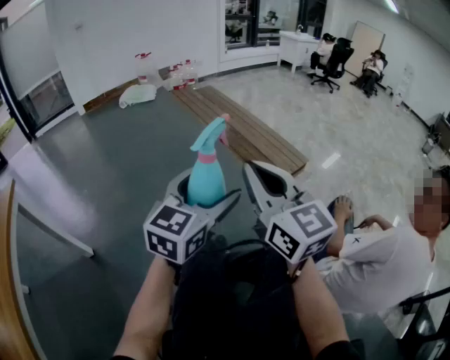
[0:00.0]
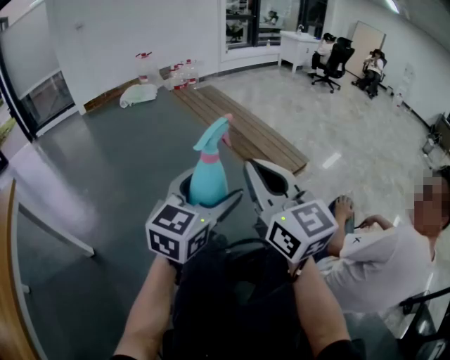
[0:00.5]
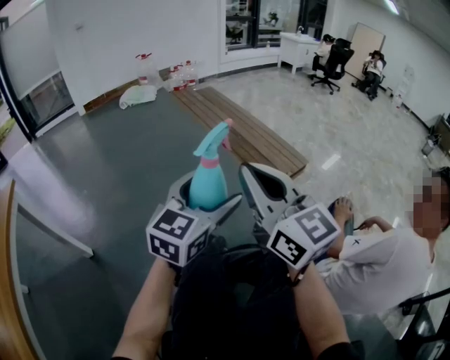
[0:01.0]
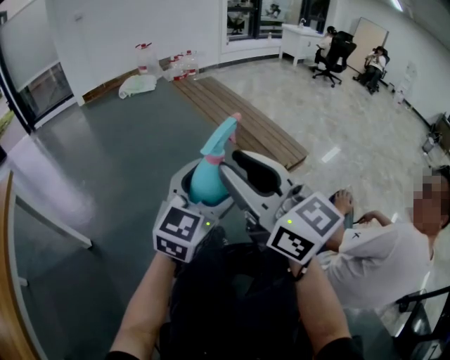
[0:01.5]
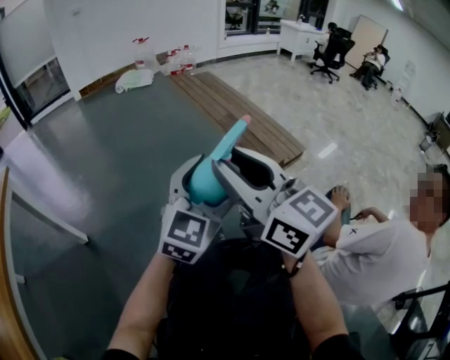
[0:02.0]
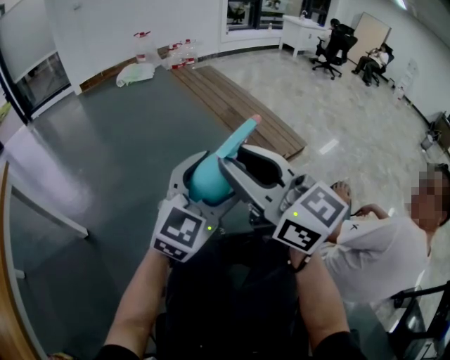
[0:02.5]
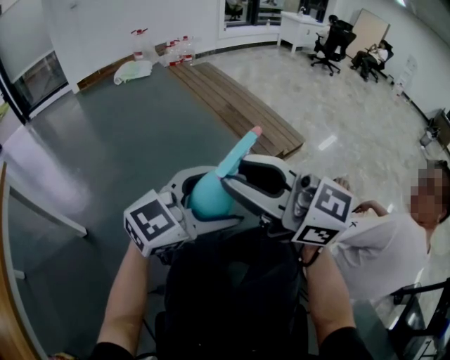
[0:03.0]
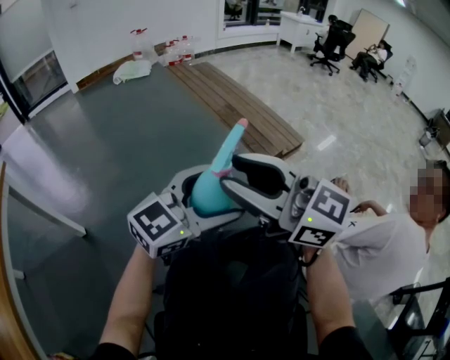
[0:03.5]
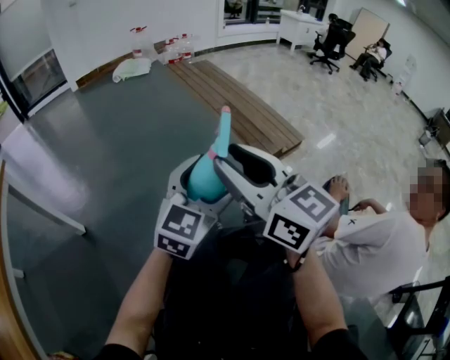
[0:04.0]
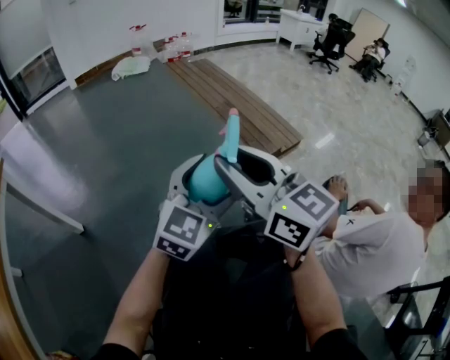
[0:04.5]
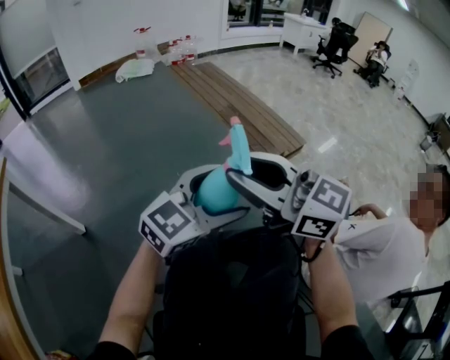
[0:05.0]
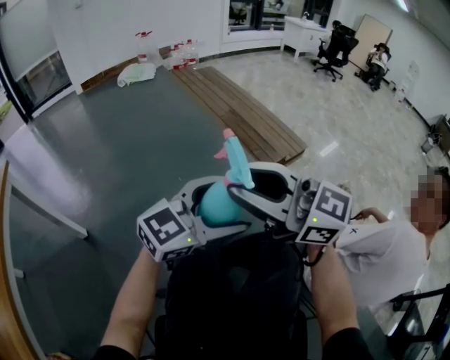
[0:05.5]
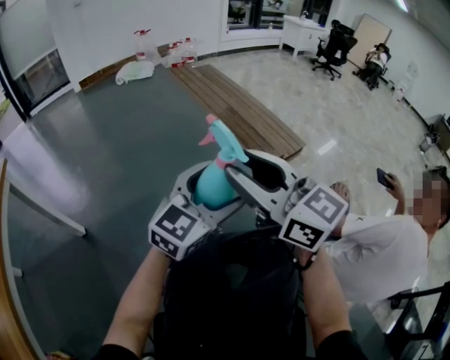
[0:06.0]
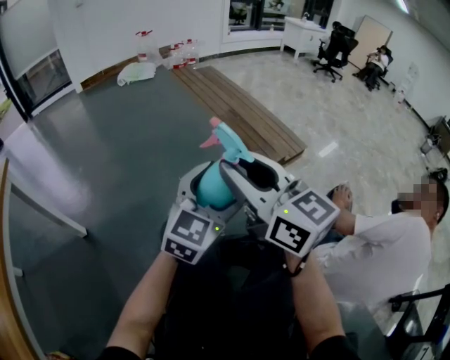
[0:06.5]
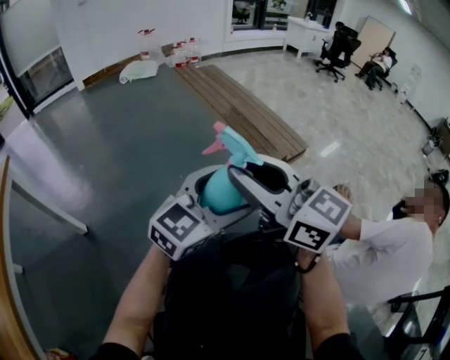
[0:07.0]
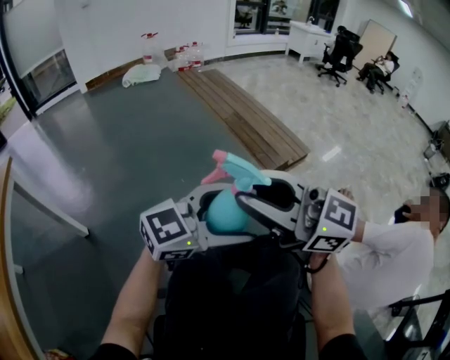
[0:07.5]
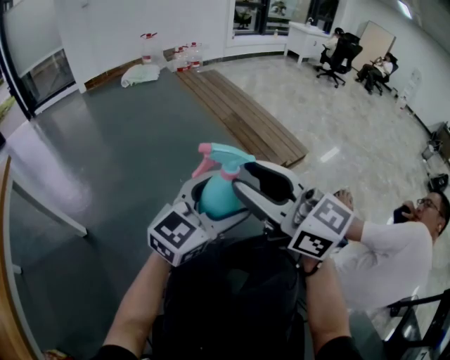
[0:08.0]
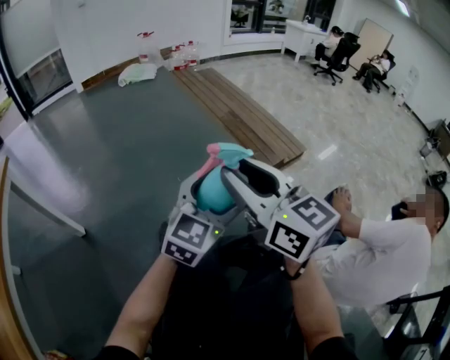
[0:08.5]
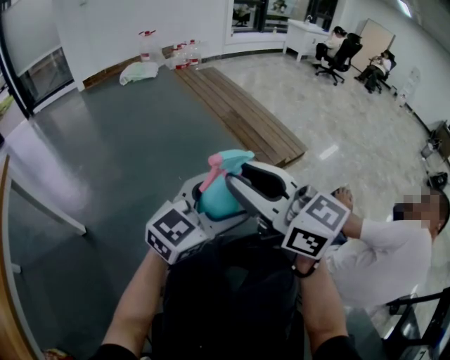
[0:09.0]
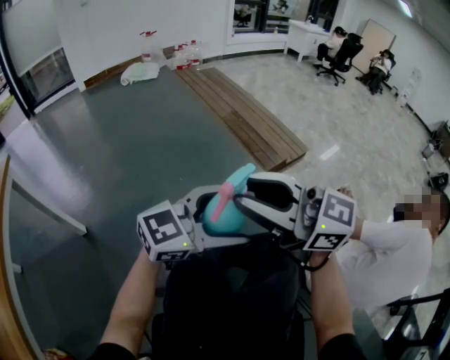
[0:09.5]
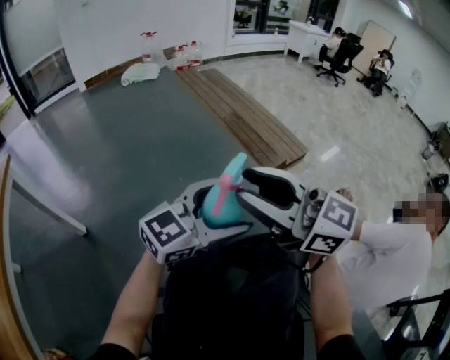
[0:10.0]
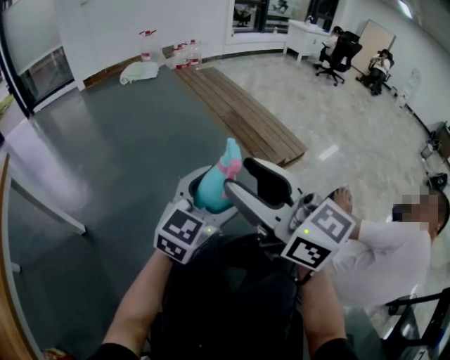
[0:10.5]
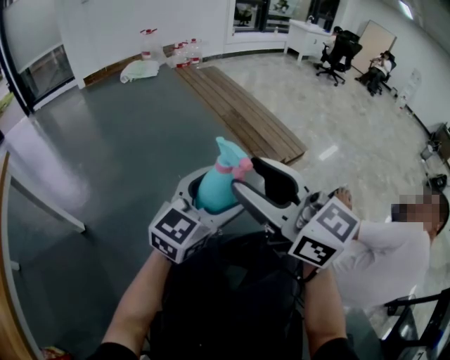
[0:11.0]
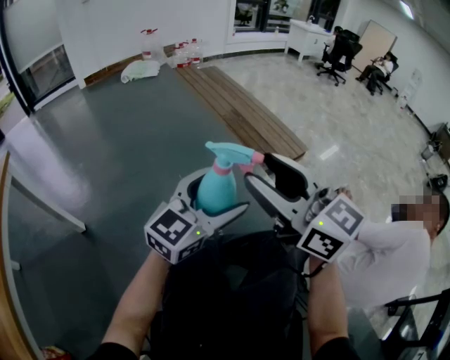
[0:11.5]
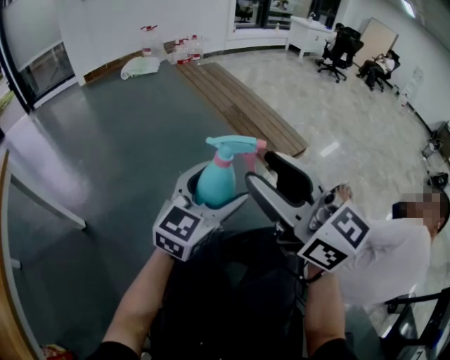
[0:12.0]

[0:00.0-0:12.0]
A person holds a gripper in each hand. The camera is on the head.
0:00.0 to 0:02.0: The right gripper changes place by approximately 5 cm, and opens up.
0:10.0 to 0:12.0: The left gripper goes some 5 cm forward, and changes its angle by some 30 degrees.

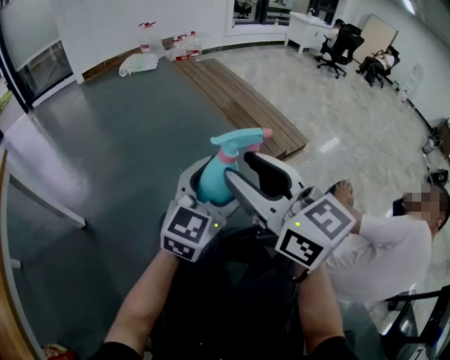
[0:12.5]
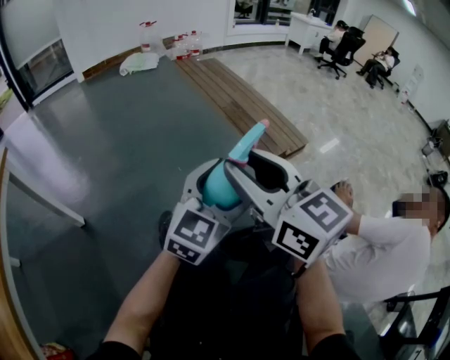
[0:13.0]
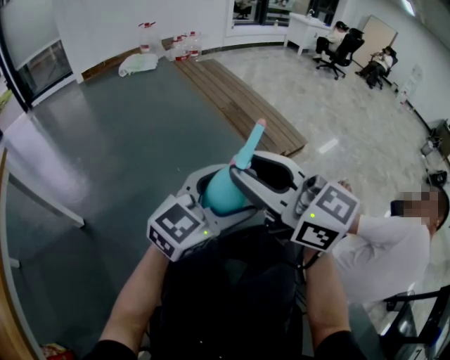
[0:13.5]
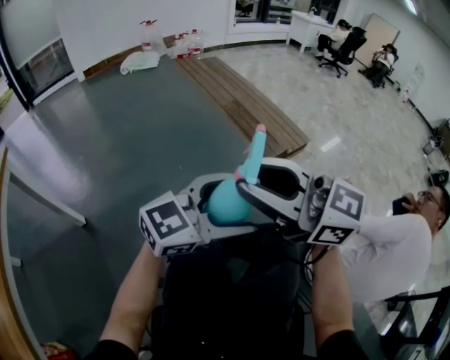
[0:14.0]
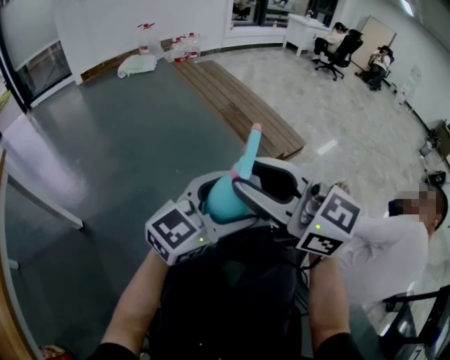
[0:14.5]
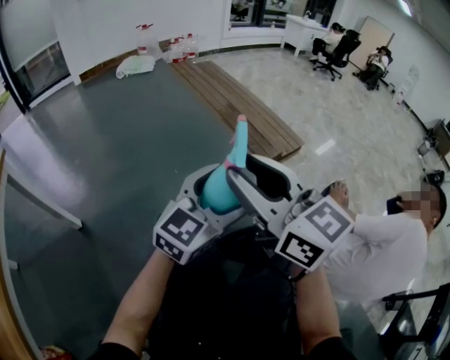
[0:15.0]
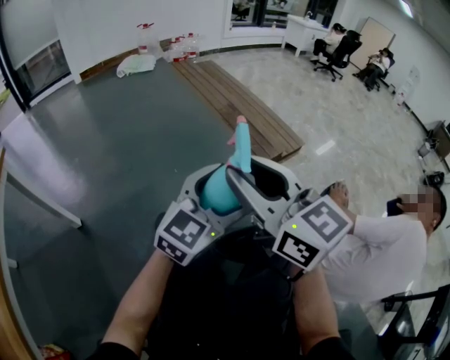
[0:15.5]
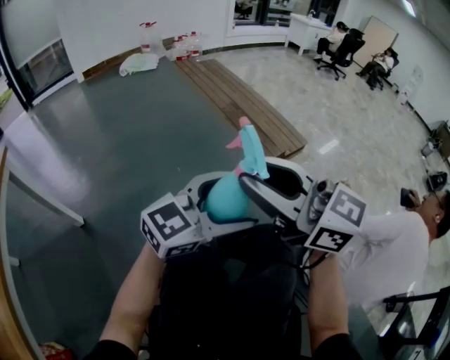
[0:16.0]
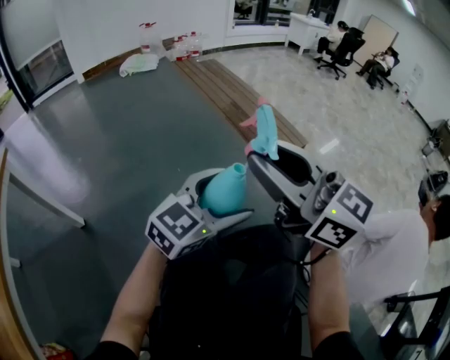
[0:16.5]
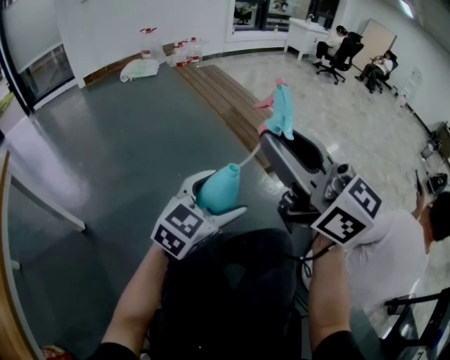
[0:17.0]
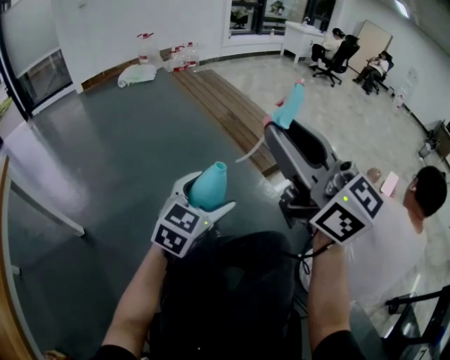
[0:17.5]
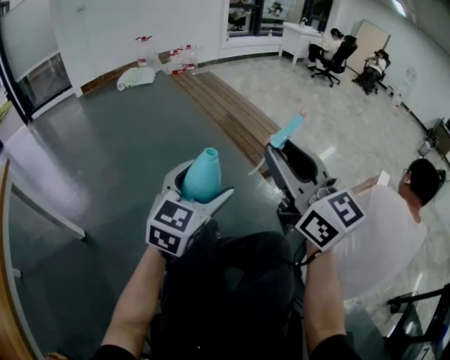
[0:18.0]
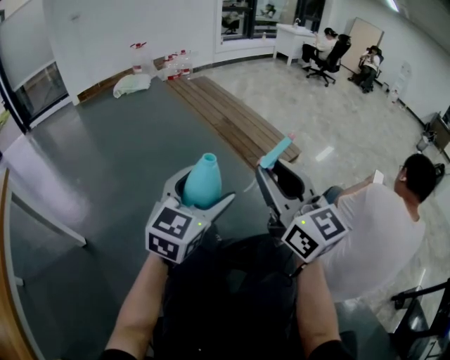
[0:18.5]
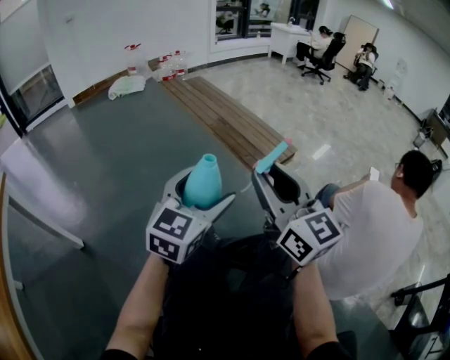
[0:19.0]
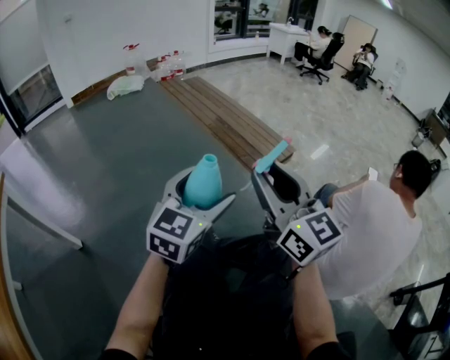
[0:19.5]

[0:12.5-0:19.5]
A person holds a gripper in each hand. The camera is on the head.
0:12.5 to 0:14.5: The left gripper shifts by some 5 cm, and changes its angle by about 20 degrees.
0:14.5 to 0:16.0: The grippers stay close to where they were, moving slightly.
0:16.0 to 0:17.5: The left gripper travels forward by about 10 cm, and swivels roughly 30 degrees. Meanwhile the right gripper is displaced upward by approximately 10 cm, and changes its angle by about 20 degrees.
0:17.5 to 0:19.5: The left gripper goes about 5 cm upward. Meanwhile the right gripper shifts some 10 cm downward.

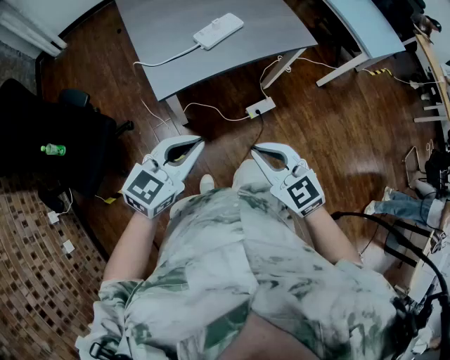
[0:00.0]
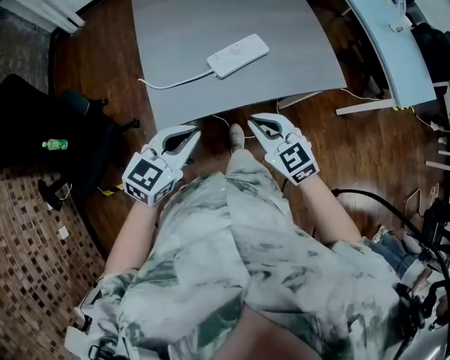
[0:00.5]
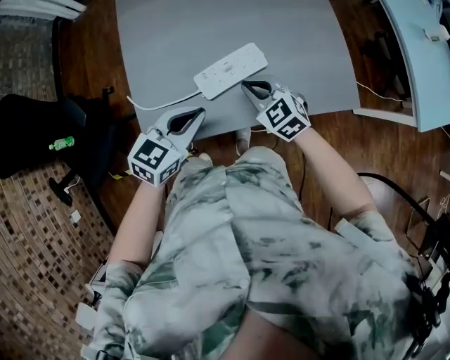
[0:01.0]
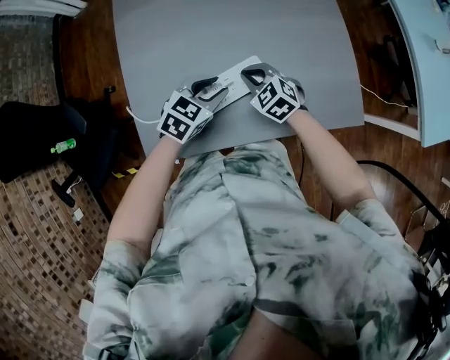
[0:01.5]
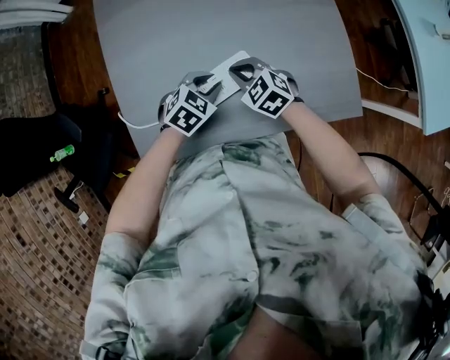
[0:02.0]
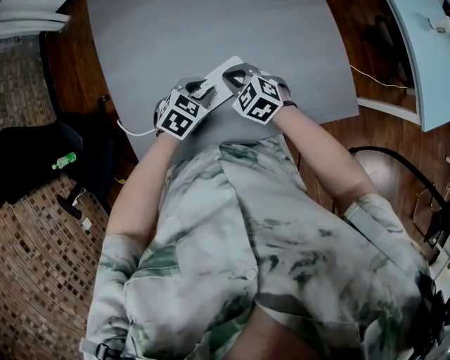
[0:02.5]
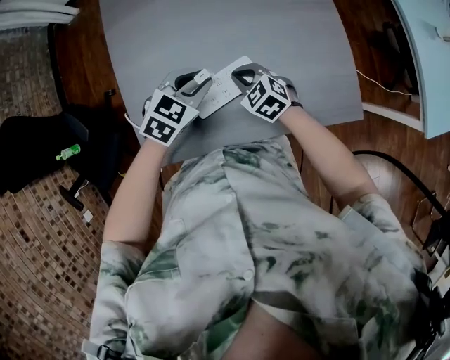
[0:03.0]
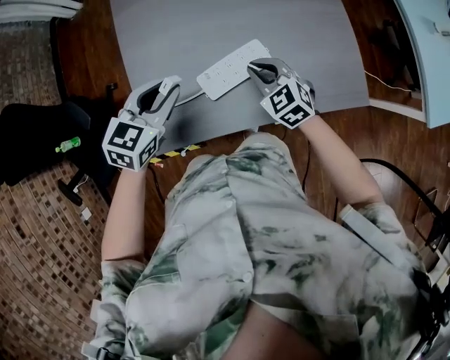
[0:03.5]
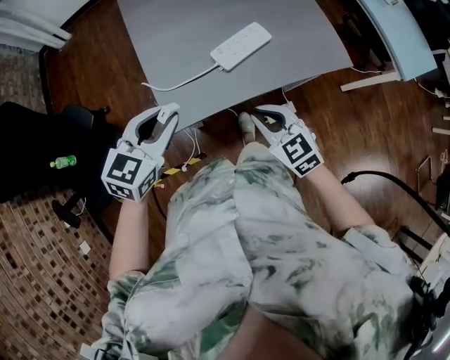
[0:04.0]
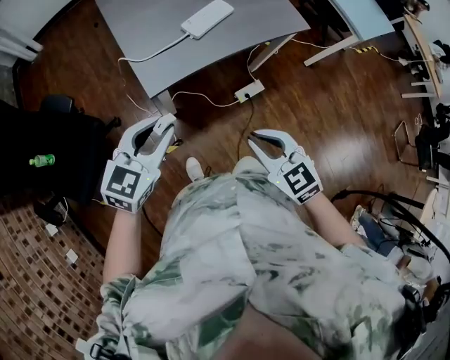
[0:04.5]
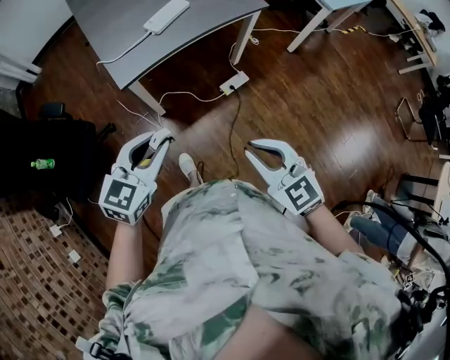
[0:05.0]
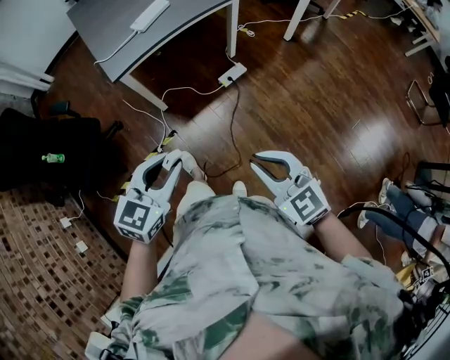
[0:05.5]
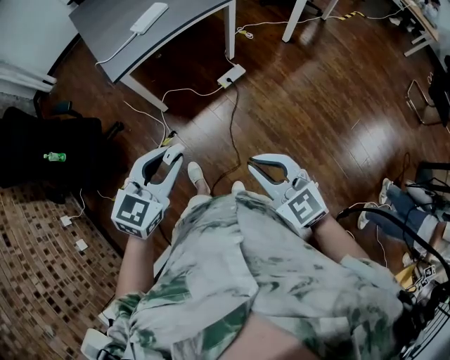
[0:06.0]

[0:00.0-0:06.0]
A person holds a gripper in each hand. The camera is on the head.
0:00.0 to 0:02.0: The two grippers travel together, forward, roughly 50 cm. The two grippers go about 25 cm downward. The left gripper tilts its fingers about 40 degrees downward, and opens up, while the right gripper rotates about 30 degrees.
0:02.0 to 0:04.0: The right gripper travels backward and upward by about 30 cm, and turns by some 20 degrees, while the left gripper is displaced to the left, upward and backward by roughly 35 cm, and changes its angle by roughly 30 degrees.
0:04.0 to 0:06.0: The pair of grippers is taken backward and to the right, about 50 cm.

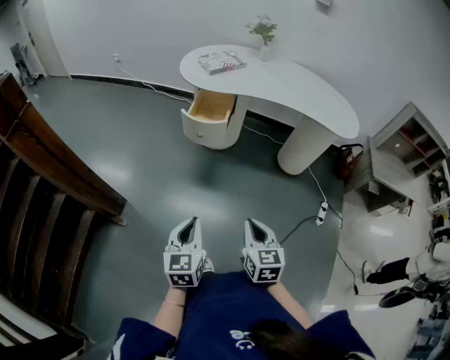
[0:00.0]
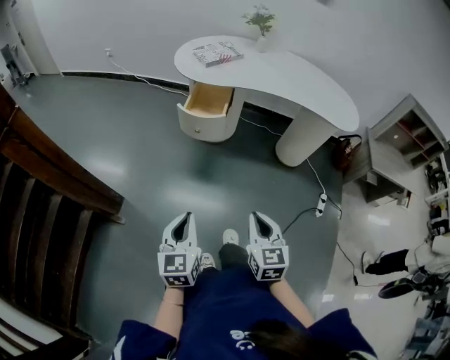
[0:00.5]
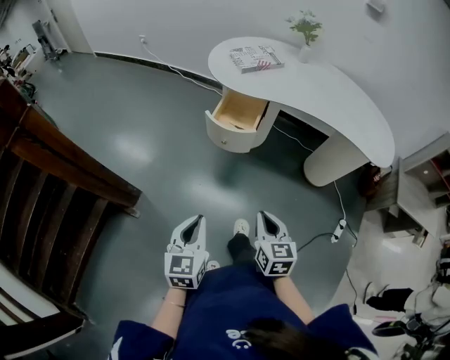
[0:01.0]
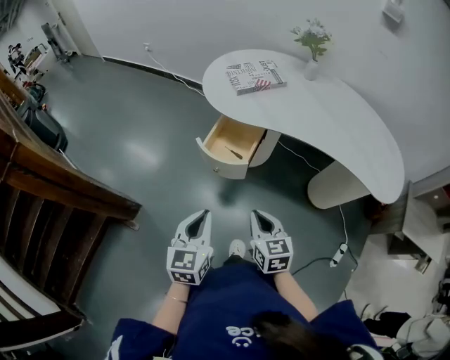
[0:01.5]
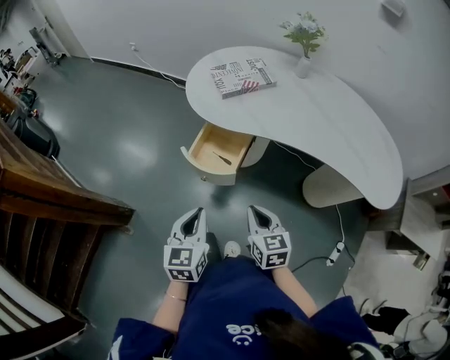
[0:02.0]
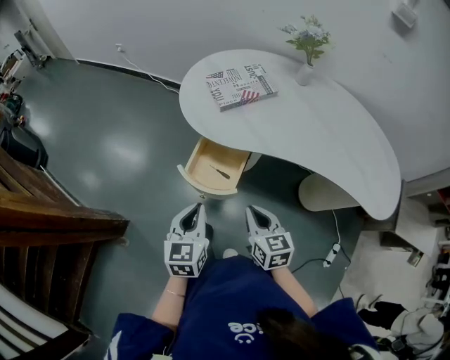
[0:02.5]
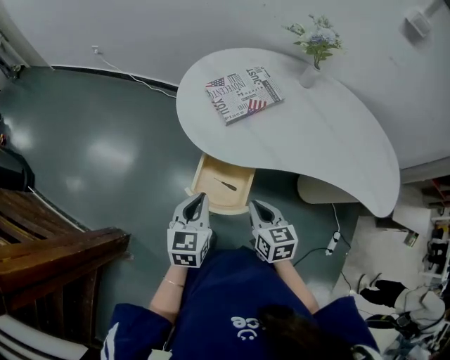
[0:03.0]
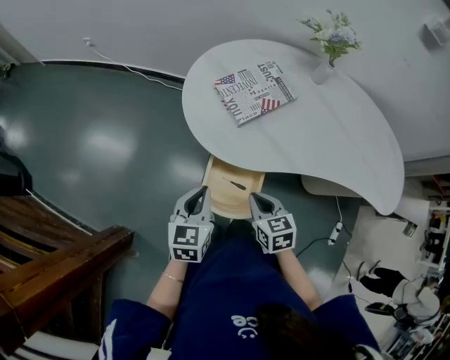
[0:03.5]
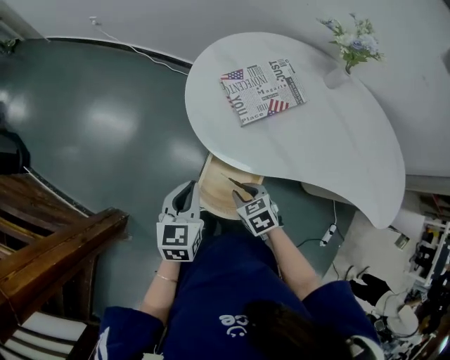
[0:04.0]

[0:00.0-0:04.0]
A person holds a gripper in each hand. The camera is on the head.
0:00.0 to 0:02.0: Both grippers move forward, about 35 cm.
0:02.0 to 0:04.0: The left gripper moves forward, approximately 30 cm; the right gripper travels forward, to the left and downward by roughly 30 cm, points its fingers roughly 30 degrees further downward, and opens up.
